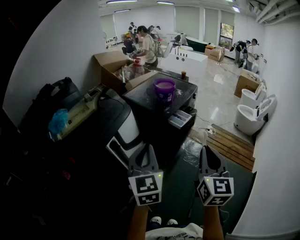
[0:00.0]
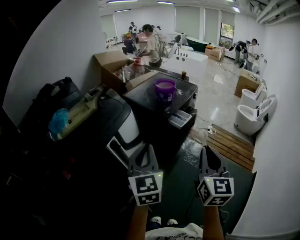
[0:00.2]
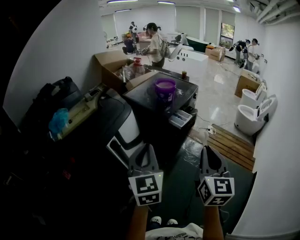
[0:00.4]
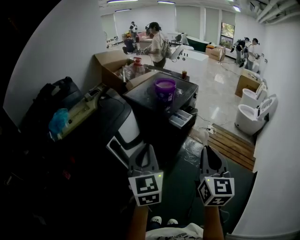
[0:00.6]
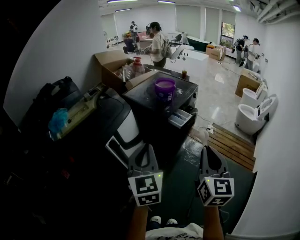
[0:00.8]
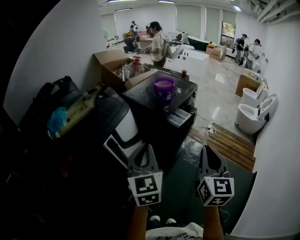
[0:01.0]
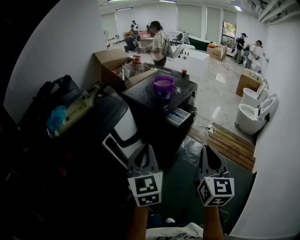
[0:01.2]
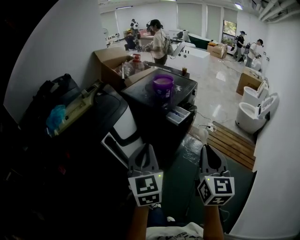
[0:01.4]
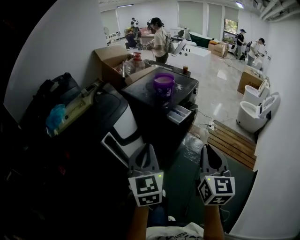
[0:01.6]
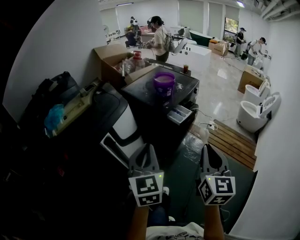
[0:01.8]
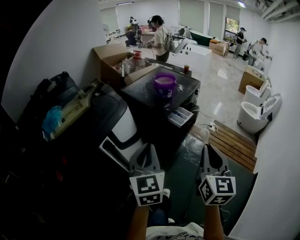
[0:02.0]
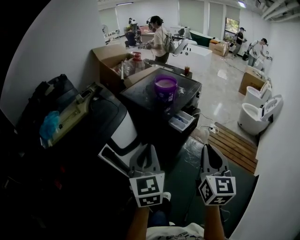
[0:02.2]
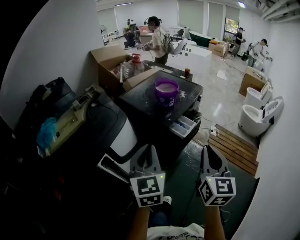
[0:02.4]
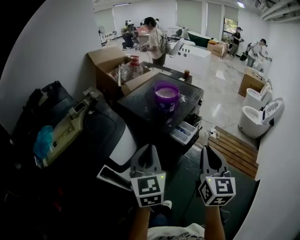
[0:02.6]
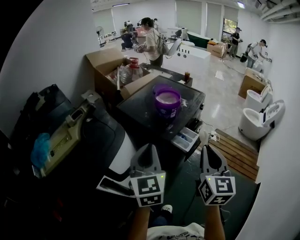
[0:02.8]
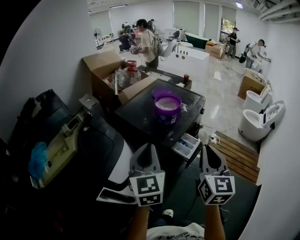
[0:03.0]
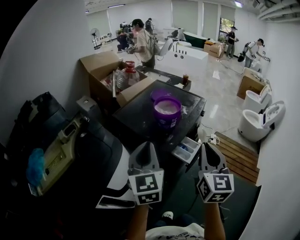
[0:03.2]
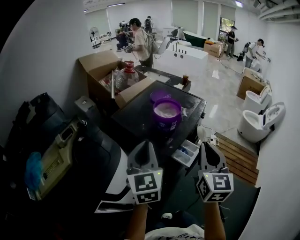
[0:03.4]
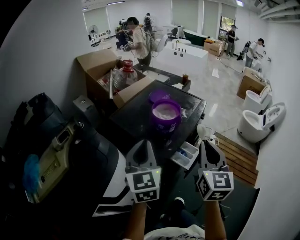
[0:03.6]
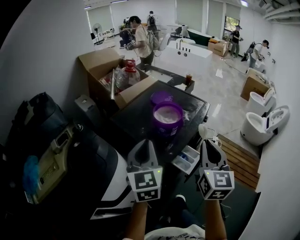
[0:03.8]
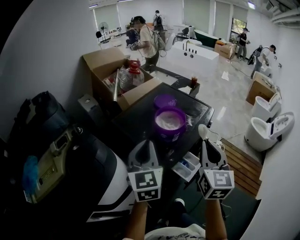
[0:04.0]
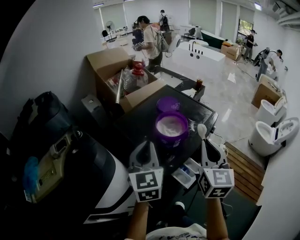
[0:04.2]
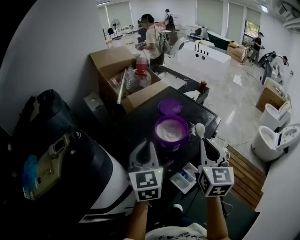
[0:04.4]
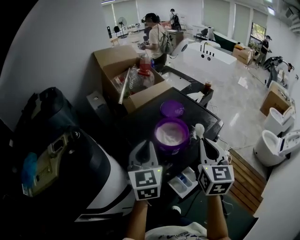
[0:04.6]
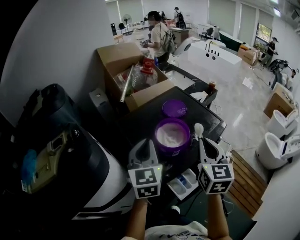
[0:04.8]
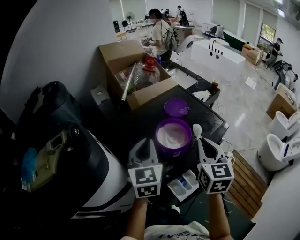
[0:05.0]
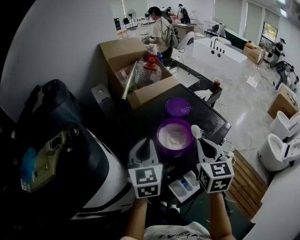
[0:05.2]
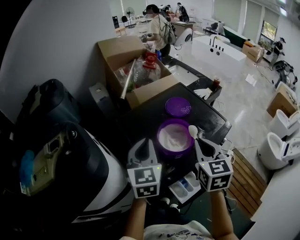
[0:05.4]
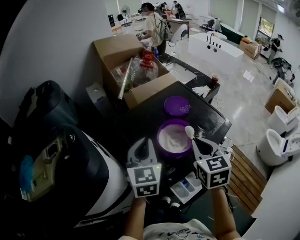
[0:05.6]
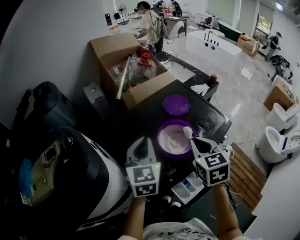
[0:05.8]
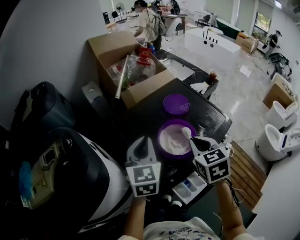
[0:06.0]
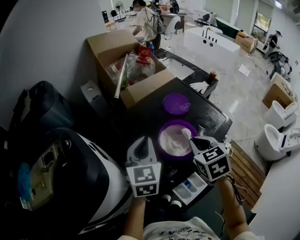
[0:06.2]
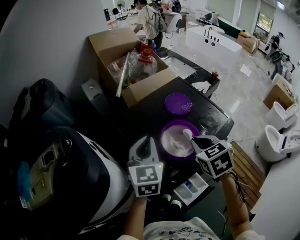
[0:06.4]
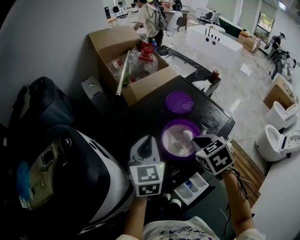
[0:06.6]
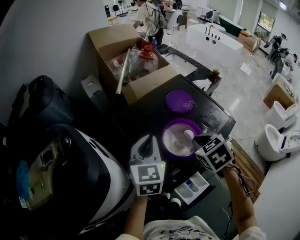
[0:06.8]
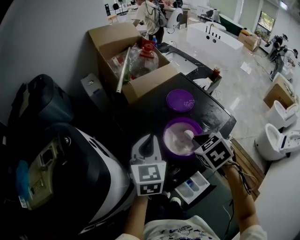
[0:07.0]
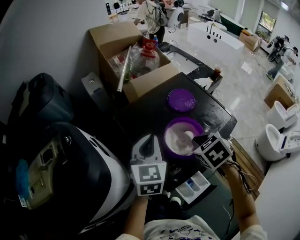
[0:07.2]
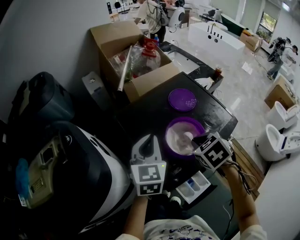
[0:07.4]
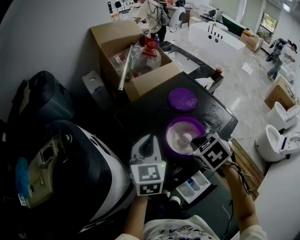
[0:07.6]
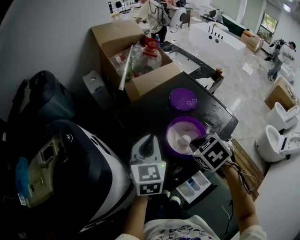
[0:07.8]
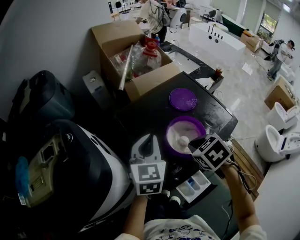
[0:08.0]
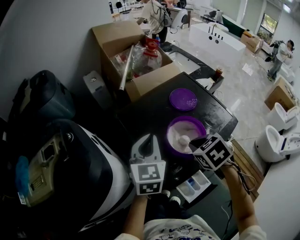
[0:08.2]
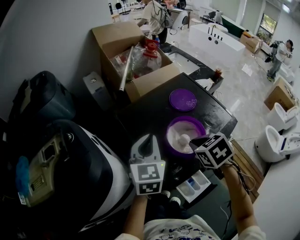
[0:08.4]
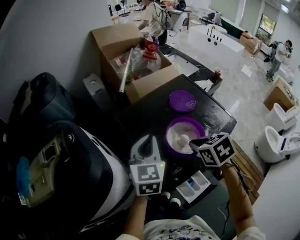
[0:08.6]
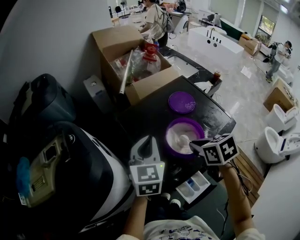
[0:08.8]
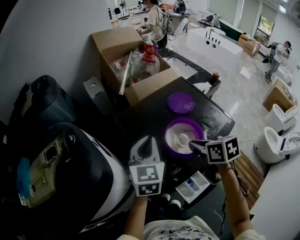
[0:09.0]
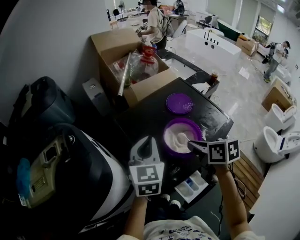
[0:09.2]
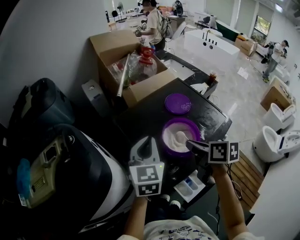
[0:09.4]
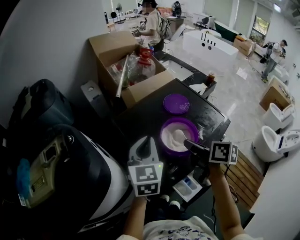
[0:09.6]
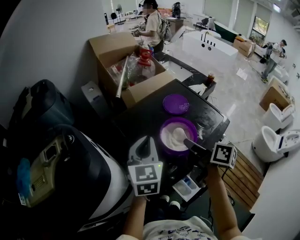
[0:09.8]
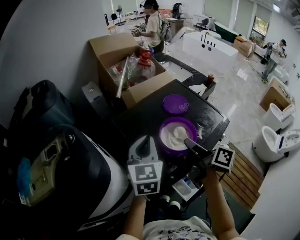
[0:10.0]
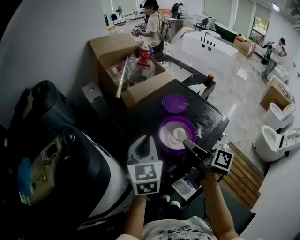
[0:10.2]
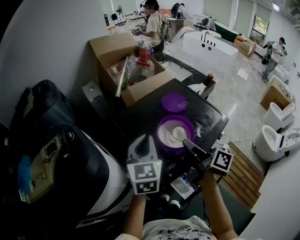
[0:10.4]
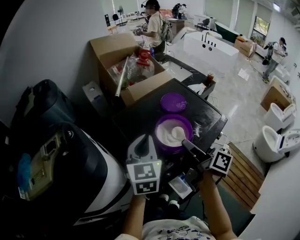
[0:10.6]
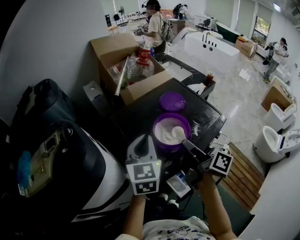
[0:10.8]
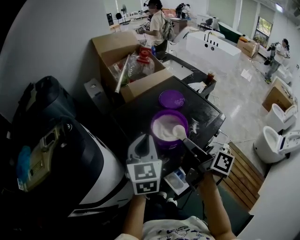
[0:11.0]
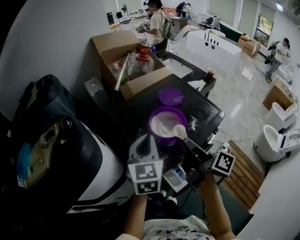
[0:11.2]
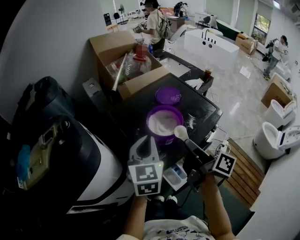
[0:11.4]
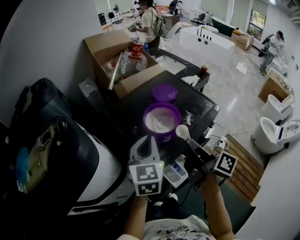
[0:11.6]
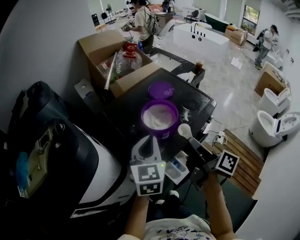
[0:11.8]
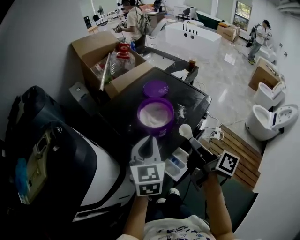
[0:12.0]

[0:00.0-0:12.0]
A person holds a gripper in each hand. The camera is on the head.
0:00.0 to 0:01.6: The grippers make only small movements.
0:01.6 to 0:03.0: The two grippers go about 30 cm forward.
0:03.0 to 0:04.4: Both grippers move forward, roughly 25 cm.
0:04.4 to 0:06.0: The left gripper moves forward, about 10 cm. Meanwhile the right gripper shifts some 15 cm forward and downward, and swivels some 30 degrees.
0:06.0 to 0:07.6: The right gripper moves downward, about 5 cm, and rotates approximately 30 degrees.
0:07.6 to 0:09.0: The right gripper rotates roughly 40 degrees.
0:09.0 to 0:10.4: The right gripper tilts its fingers about 40 degrees upward.
0:10.4 to 0:12.0: The two grippers go about 10 cm backward and to the right.

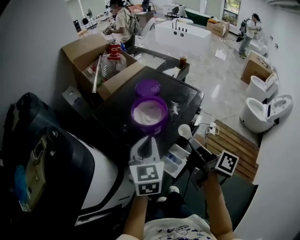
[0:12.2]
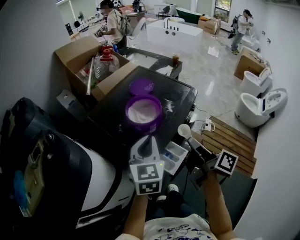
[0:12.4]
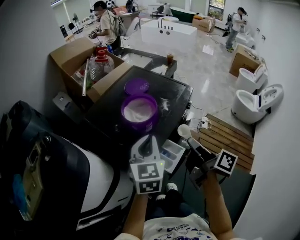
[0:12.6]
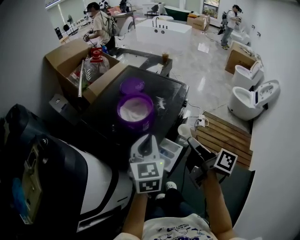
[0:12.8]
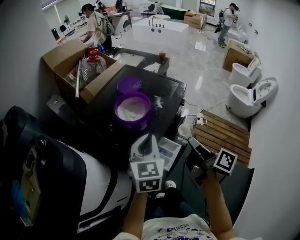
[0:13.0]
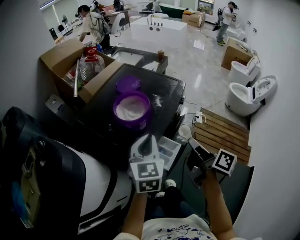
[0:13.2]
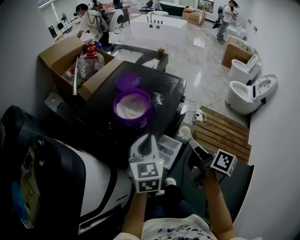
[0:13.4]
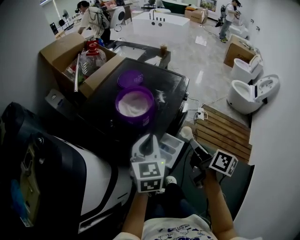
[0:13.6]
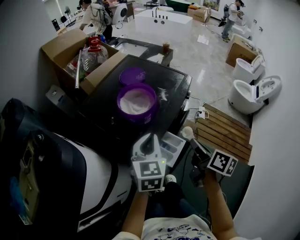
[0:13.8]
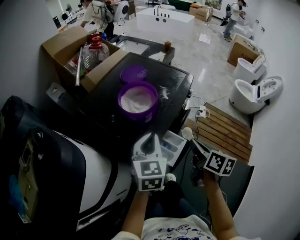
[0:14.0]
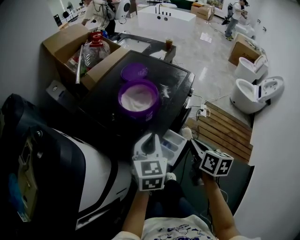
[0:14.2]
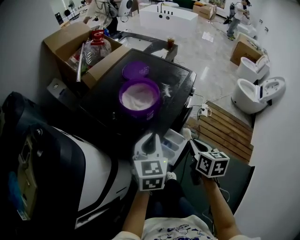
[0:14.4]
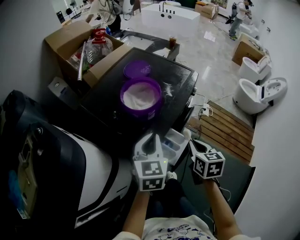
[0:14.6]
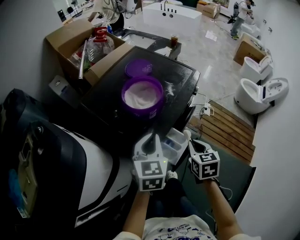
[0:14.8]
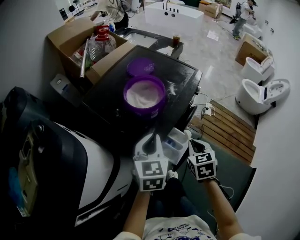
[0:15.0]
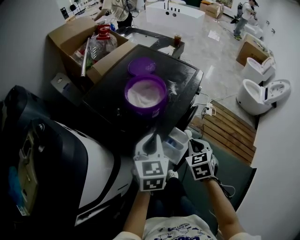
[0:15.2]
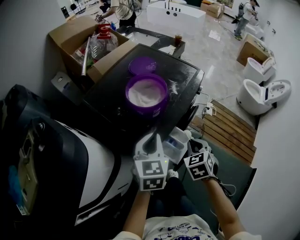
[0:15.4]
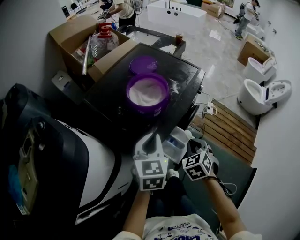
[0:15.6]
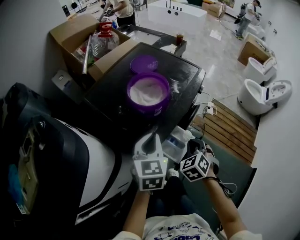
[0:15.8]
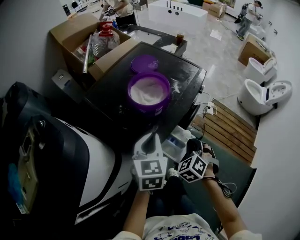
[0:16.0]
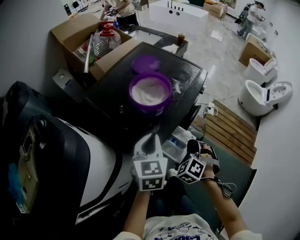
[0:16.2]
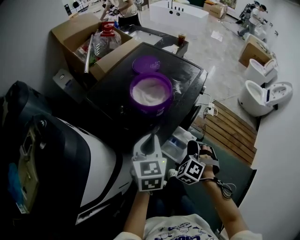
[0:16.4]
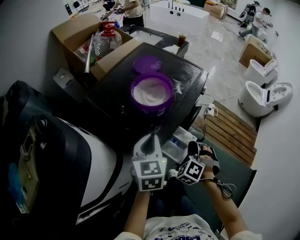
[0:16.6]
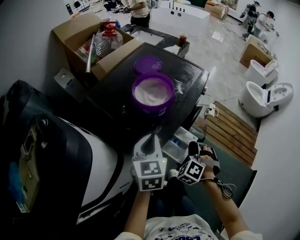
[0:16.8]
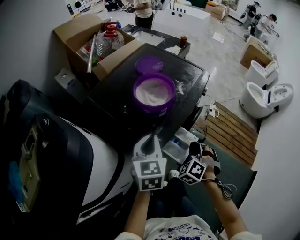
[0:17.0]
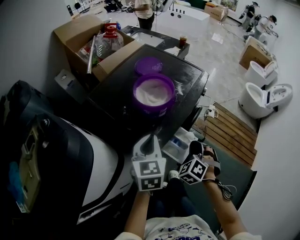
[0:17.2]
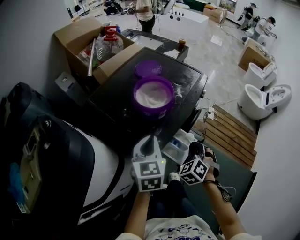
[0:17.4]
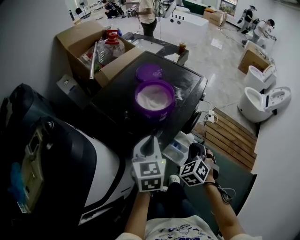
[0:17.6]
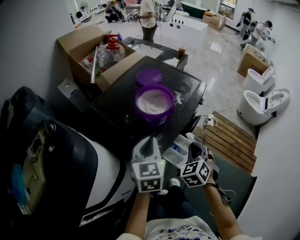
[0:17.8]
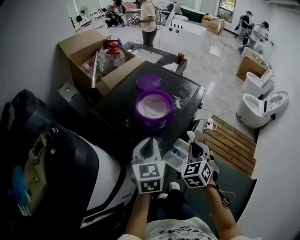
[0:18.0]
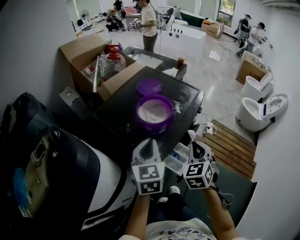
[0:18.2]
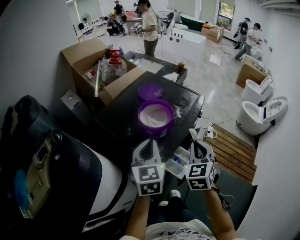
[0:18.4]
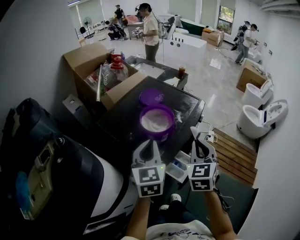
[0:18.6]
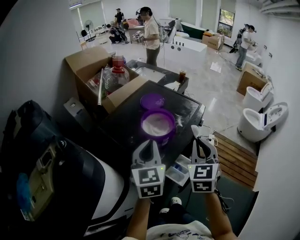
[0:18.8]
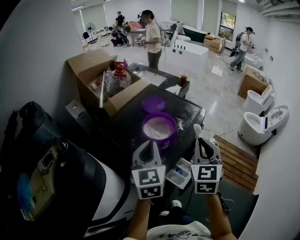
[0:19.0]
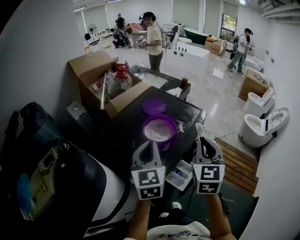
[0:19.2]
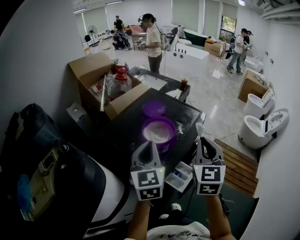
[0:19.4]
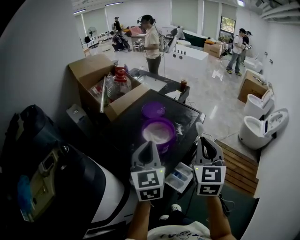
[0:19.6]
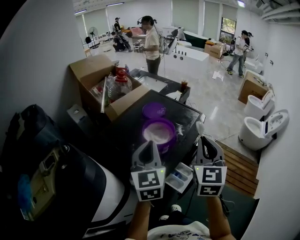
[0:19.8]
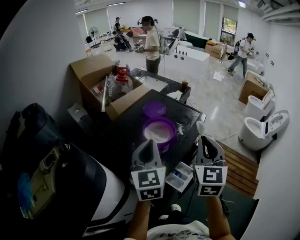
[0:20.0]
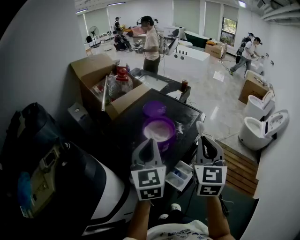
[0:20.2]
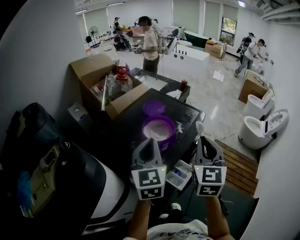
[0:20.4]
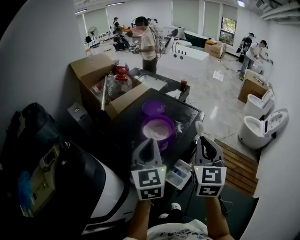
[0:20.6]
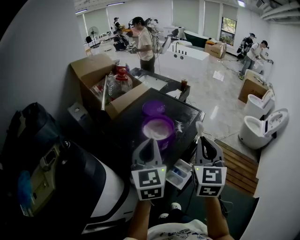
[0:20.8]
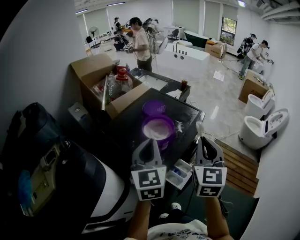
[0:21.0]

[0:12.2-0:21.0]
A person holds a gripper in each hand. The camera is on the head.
0:12.2 to 0:13.6: The right gripper goes about 5 cm downward, and turns by roughly 20 degrees. Meanwhile the left gripper moves approximately 5 cm.
0:13.6 to 0:15.2: The right gripper shifts some 10 cm downward, and rolls counterclockwise, seen from behind, by roughly 70 degrees.
0:15.2 to 0:16.6: The right gripper rolls counterclockwise, seen from behind, by about 50 degrees.
0:16.6 to 0:18.0: The left gripper shifts some 5 cm upward, while the right gripper shifts roughly 10 cm upward, and rotates approximately 30 degrees.
0:18.0 to 0:19.6: The left gripper travels upward by some 10 cm; the right gripper goes roughly 20 cm upward, and changes its angle by some 30 degrees.
0:19.6 to 0:21.0: The grippers make only small movements.

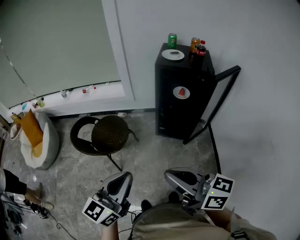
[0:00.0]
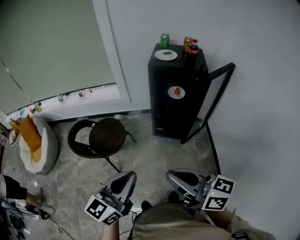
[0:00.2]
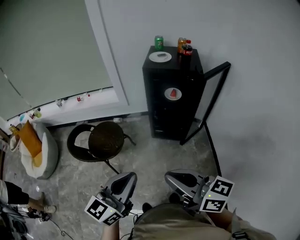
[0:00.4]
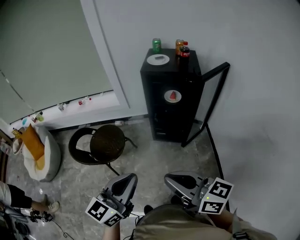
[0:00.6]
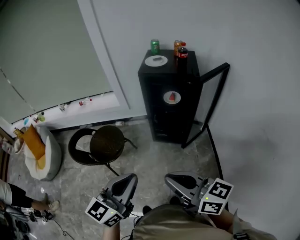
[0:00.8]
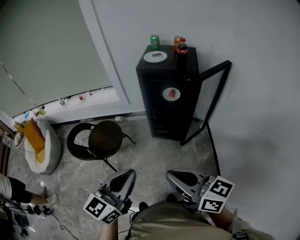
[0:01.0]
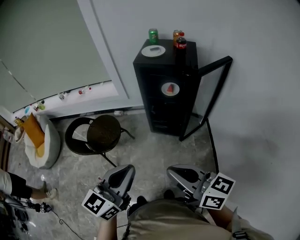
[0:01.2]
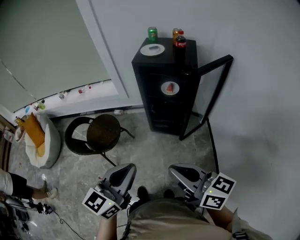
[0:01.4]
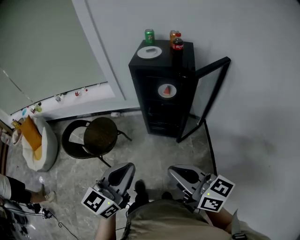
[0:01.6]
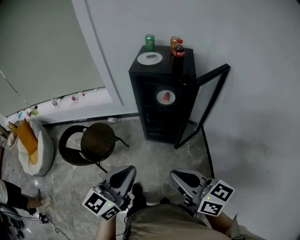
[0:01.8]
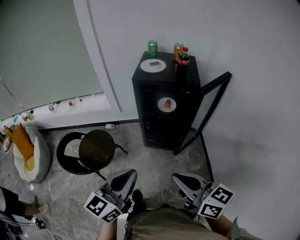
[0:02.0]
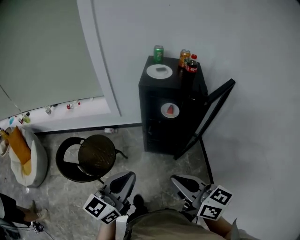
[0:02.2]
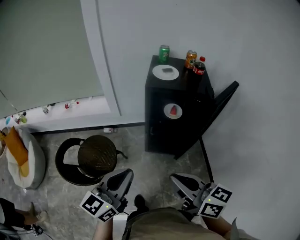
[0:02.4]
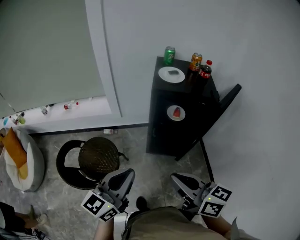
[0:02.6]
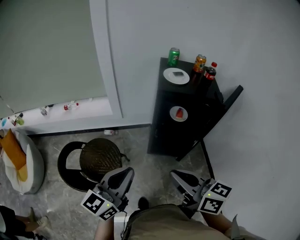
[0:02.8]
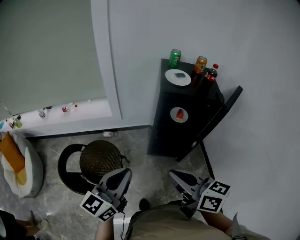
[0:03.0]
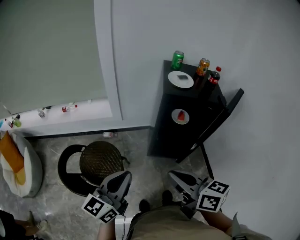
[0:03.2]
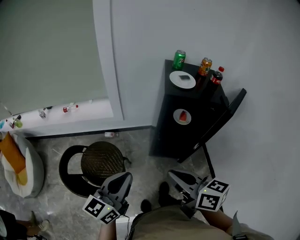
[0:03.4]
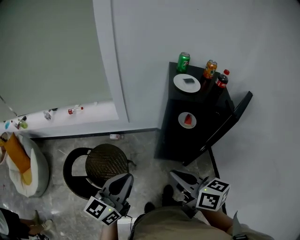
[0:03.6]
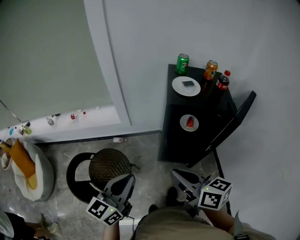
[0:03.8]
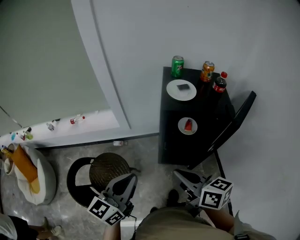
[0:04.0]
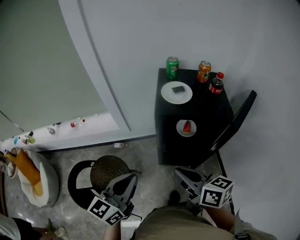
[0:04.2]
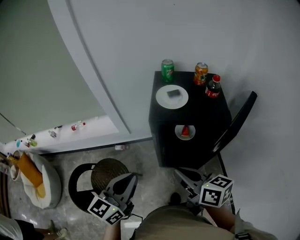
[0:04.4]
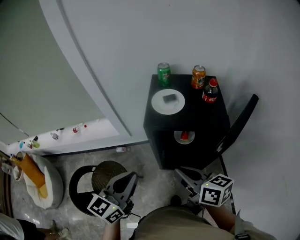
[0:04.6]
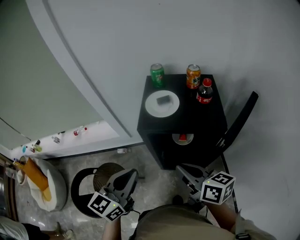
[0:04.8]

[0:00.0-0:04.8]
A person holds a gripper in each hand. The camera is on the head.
0:00.0 to 0:01.6: Both grippers travel together to the right, about 15 cm.
0:01.6 to 0:03.2: The two grippers go approximately 30 cm to the left and forward.
0:03.2 to 0:04.8: Both grippers travel together forward and to the right, about 25 cm.
